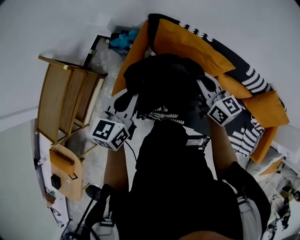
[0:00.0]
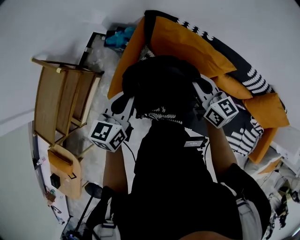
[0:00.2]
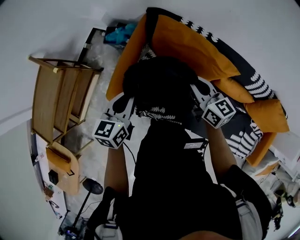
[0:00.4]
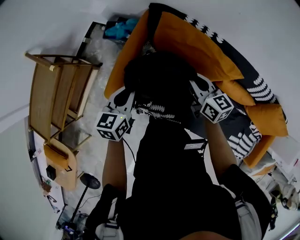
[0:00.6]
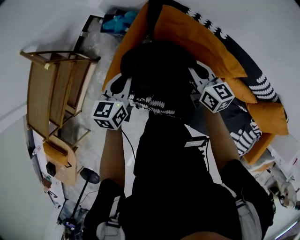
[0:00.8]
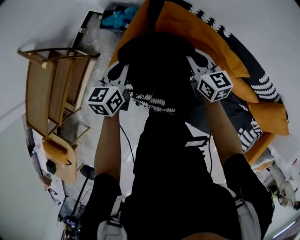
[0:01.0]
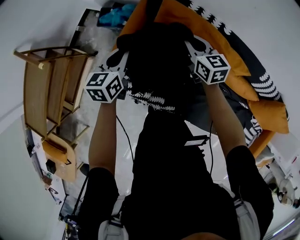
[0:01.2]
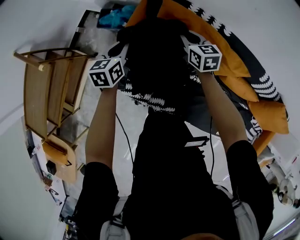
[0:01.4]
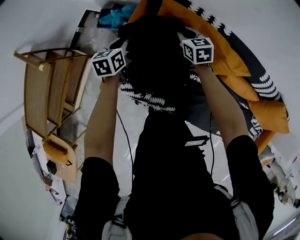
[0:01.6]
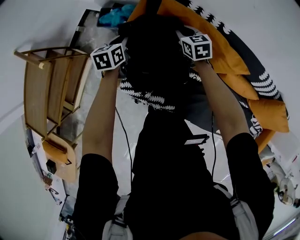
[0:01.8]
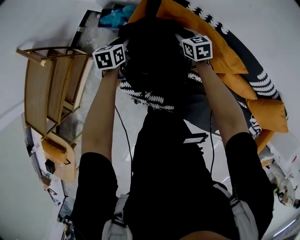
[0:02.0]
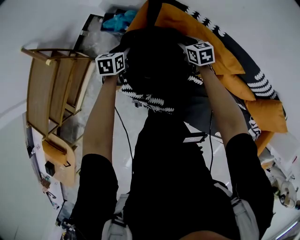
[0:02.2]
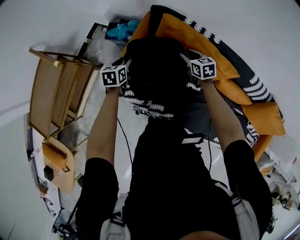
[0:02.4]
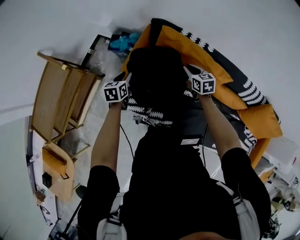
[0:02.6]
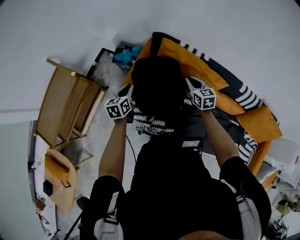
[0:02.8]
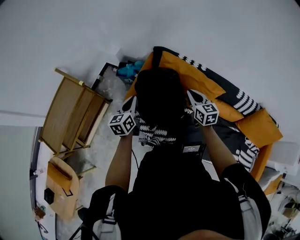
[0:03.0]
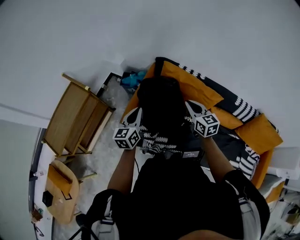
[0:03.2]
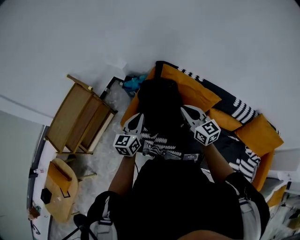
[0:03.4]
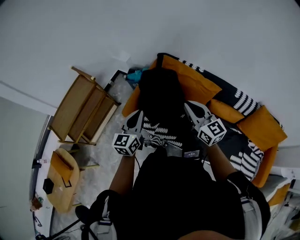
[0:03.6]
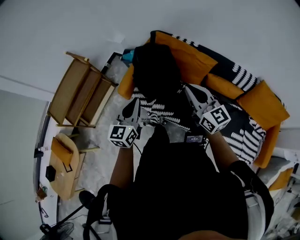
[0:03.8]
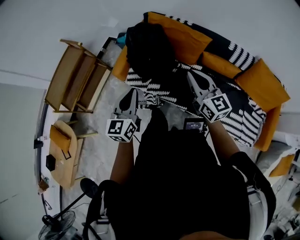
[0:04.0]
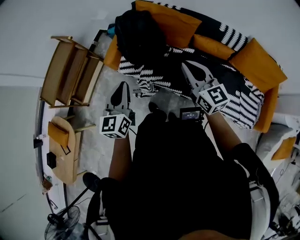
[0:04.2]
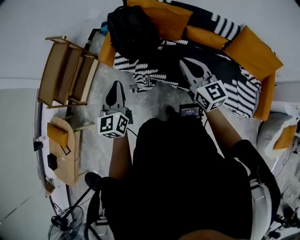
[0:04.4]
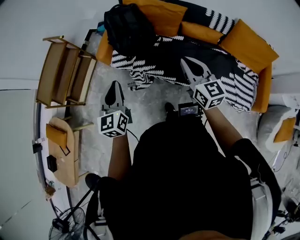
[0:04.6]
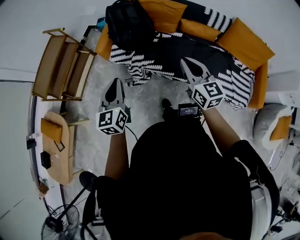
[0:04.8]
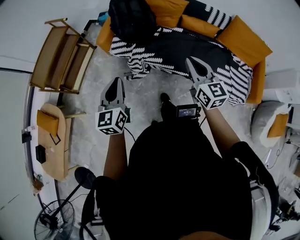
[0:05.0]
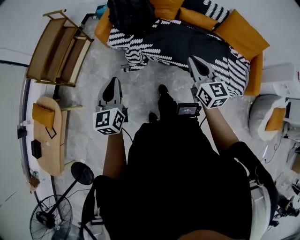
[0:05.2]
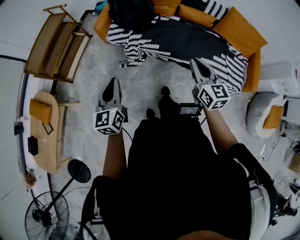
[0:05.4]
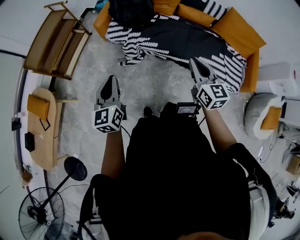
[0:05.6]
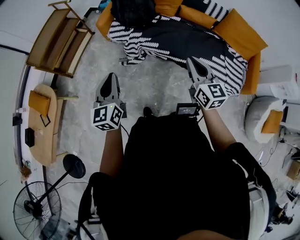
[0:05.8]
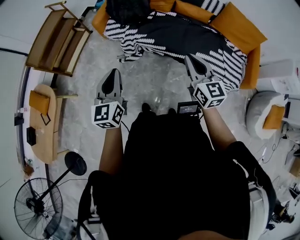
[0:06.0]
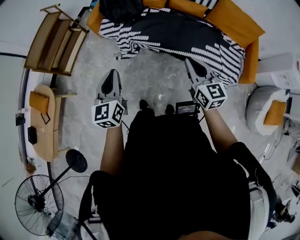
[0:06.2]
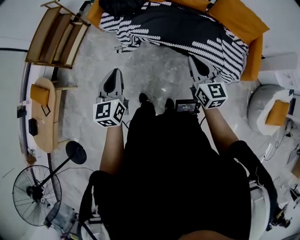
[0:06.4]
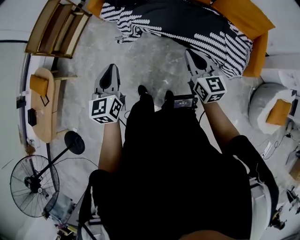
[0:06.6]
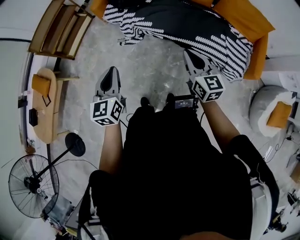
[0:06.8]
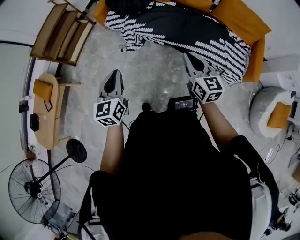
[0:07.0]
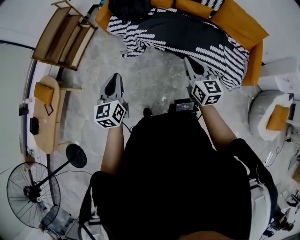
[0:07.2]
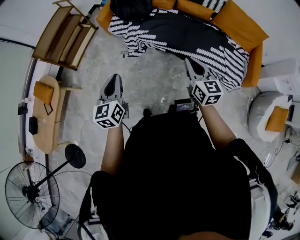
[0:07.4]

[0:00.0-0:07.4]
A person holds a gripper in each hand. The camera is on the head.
0.0 to 1.4 s: The grippers both shift downward and forward by approximately 35 cm. The right gripper changes its angle by roughly 30 degrees.
1.4 to 3.0 s: Both grippers move backward and upward, some 25 cm. The right gripper opens, then closes once more. The left gripper opens and closes again.
3.0 to 4.4 s: The two grippers travel together, backward, about 40 cm. The left gripper rotates some 20 degrees.
4.4 to 6.0 s: Both grippers move backward, roughly 30 cm.
6.0 to 7.4 s: Both grippers move backward, about 5 cm. The right gripper goes to the right and returns, roughly 10 cm each way, while the left gripper moves about 10 cm to the right and comes back.

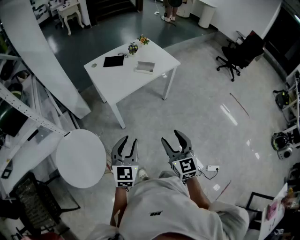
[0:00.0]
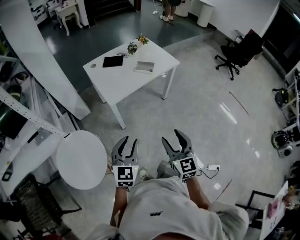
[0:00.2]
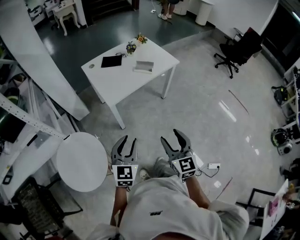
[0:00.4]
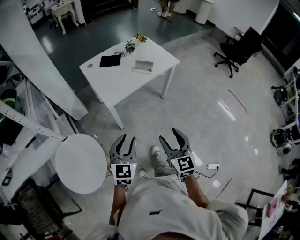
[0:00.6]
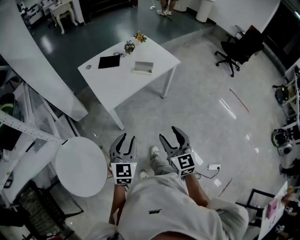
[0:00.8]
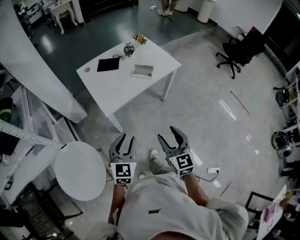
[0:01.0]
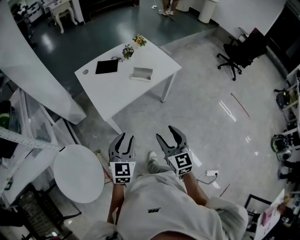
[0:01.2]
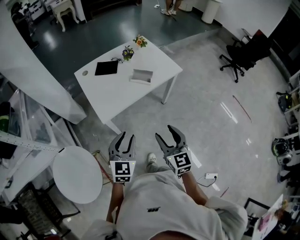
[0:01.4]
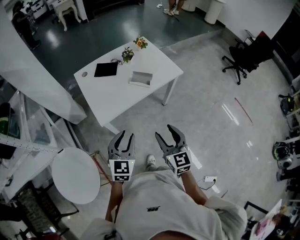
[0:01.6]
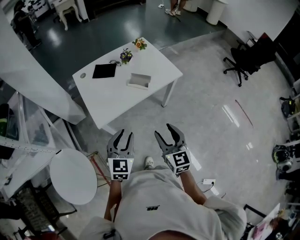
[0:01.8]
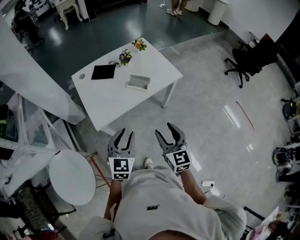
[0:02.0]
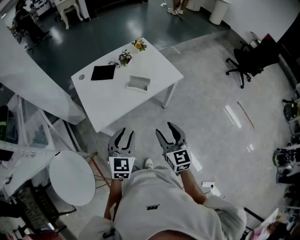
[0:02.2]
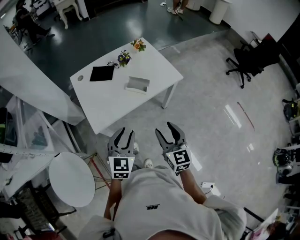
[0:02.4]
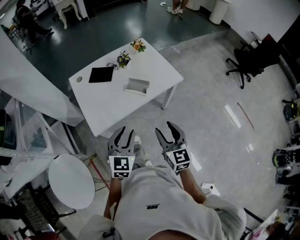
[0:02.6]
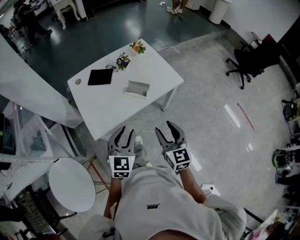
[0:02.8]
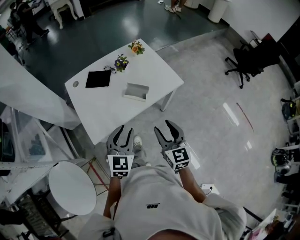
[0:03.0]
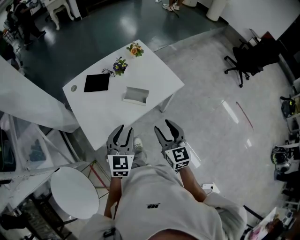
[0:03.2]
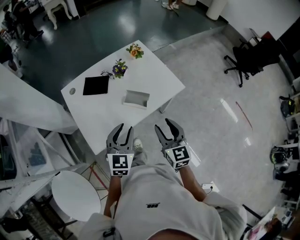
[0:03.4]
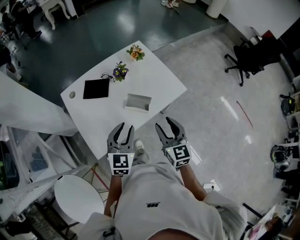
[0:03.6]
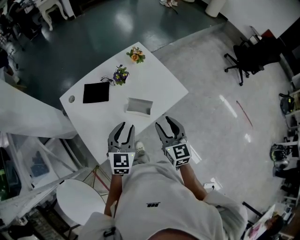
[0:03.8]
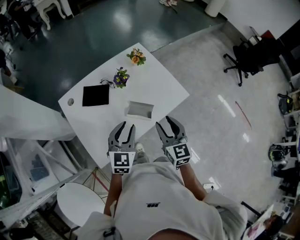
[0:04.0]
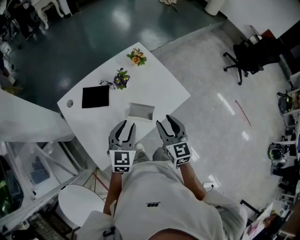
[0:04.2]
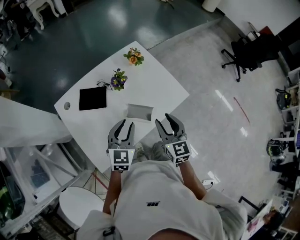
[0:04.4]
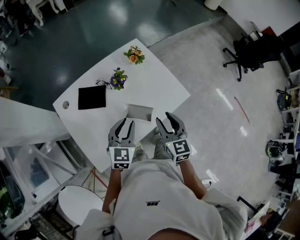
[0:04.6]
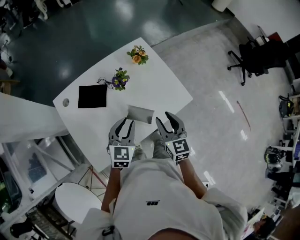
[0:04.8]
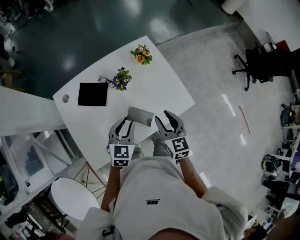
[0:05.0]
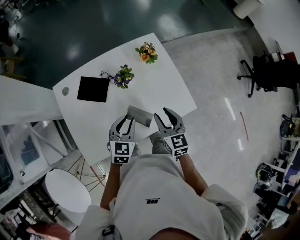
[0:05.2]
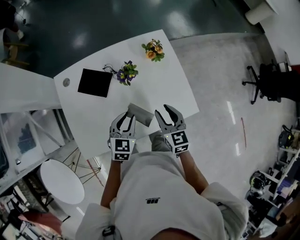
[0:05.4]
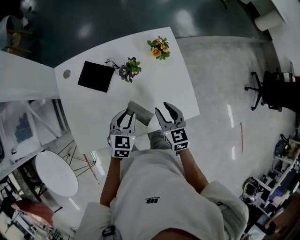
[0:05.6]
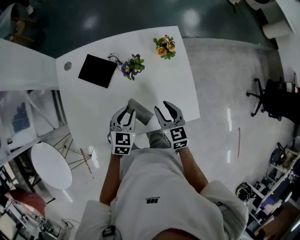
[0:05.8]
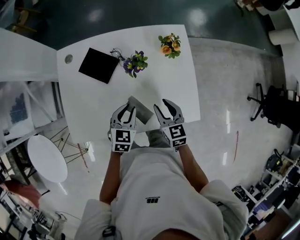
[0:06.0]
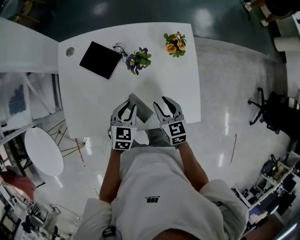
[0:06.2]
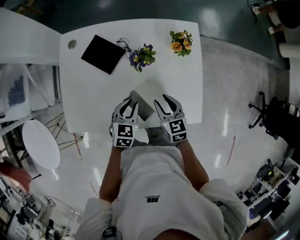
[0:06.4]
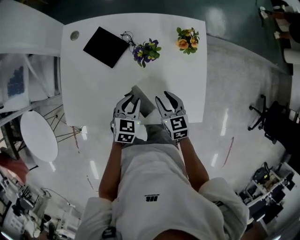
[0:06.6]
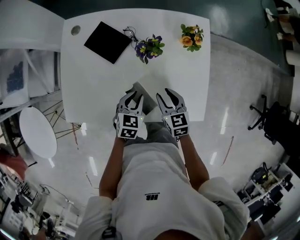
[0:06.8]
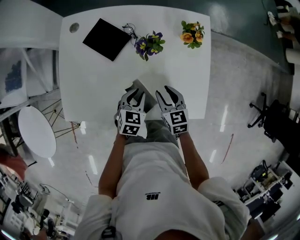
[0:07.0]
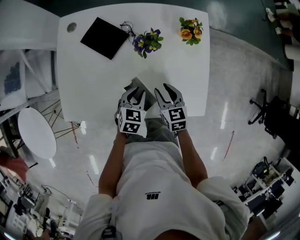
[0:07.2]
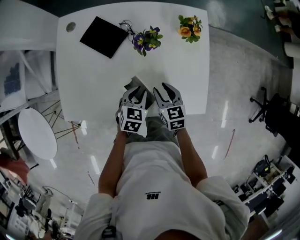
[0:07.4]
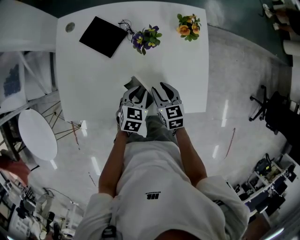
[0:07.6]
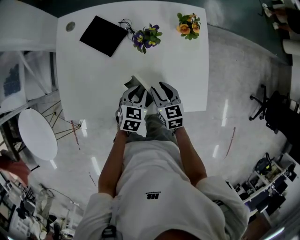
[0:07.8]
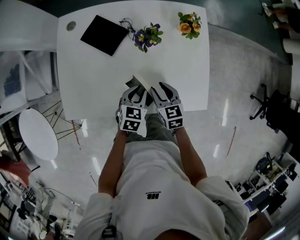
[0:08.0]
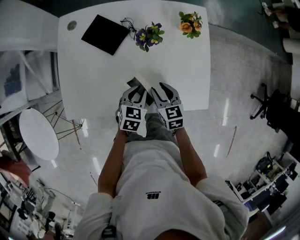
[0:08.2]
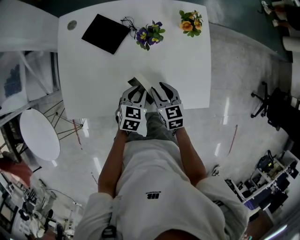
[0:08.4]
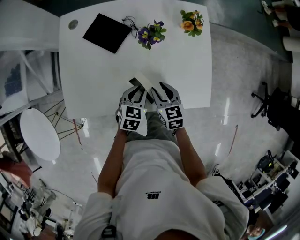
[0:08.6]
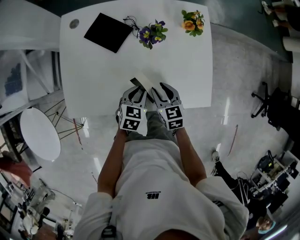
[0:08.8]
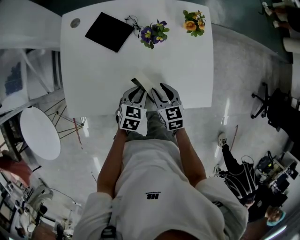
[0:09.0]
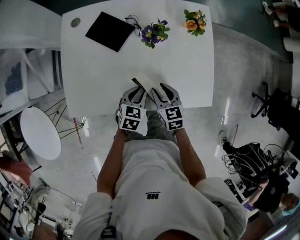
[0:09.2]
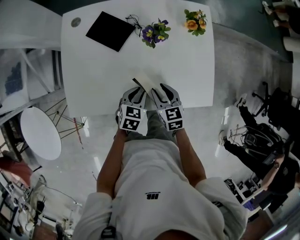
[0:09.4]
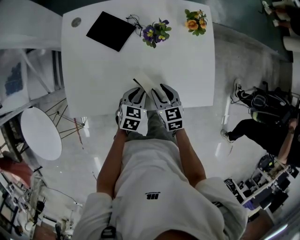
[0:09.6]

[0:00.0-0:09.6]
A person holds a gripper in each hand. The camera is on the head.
0.0 to 1.6 s: Both grippers move forward, approximately 25 cm.
1.6 to 3.2 s: The two grippers go roughly 20 cm forward.
3.2 to 4.8 s: The grippers both shift forward by roughly 25 cm.
4.8 to 6.4 s: Both grippers travel together downward, roughly 15 cm. The left gripper turns by about 30 degrees, while the right gripper changes its angle by approximately 40 degrees.
6.4 to 8.0 s: The right gripper shifts by about 5 cm. The left gripper shifts by about 5 cm.
8.0 to 9.6 s: The left gripper shifts by roughly 5 cm.

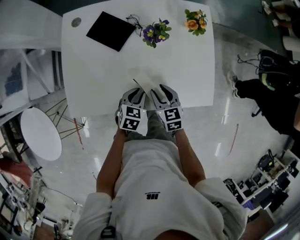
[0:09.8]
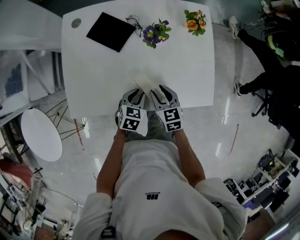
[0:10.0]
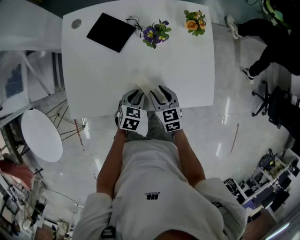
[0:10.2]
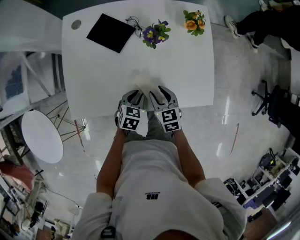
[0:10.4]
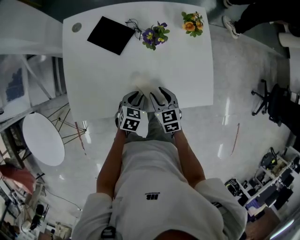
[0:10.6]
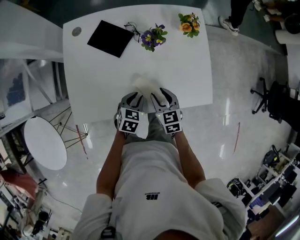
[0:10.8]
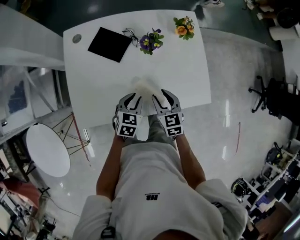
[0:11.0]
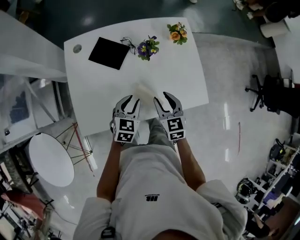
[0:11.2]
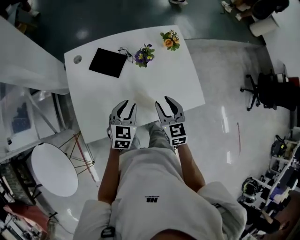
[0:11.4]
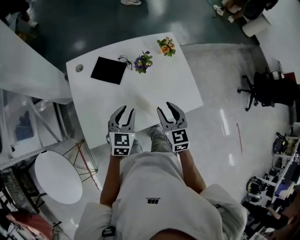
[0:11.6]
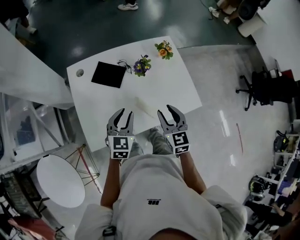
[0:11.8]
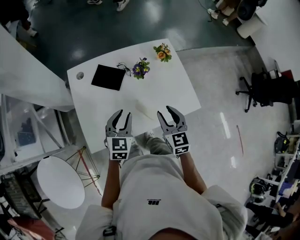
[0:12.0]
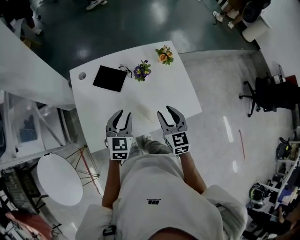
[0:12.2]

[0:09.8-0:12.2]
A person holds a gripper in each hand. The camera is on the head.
9.8 to 11.0 s: The left gripper ends up approximately 5 cm from where it was.
11.0 to 12.2 s: The two grippers go about 15 cm upward. The left gripper rotates some 20 degrees.

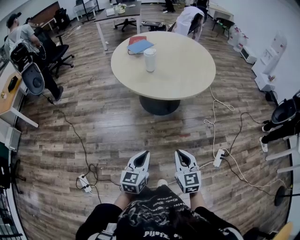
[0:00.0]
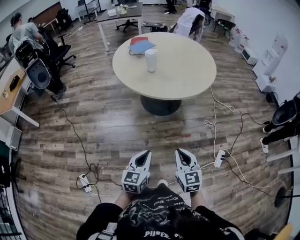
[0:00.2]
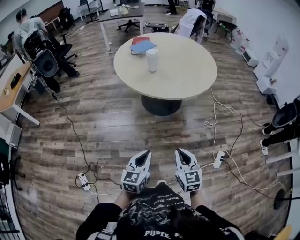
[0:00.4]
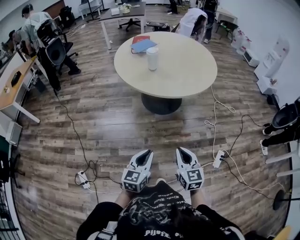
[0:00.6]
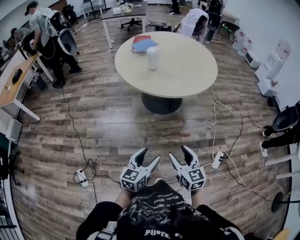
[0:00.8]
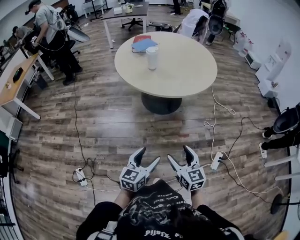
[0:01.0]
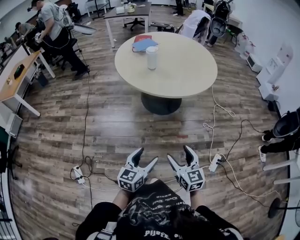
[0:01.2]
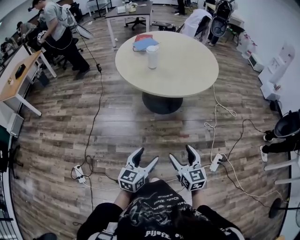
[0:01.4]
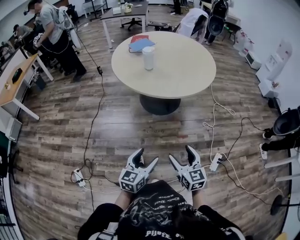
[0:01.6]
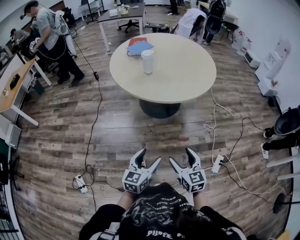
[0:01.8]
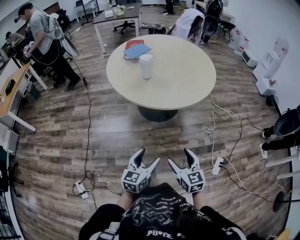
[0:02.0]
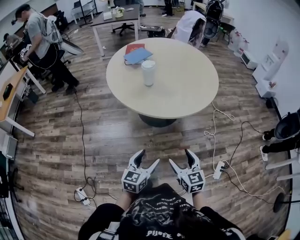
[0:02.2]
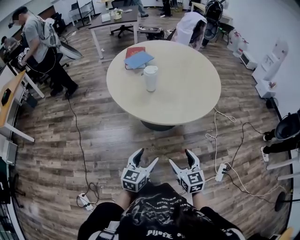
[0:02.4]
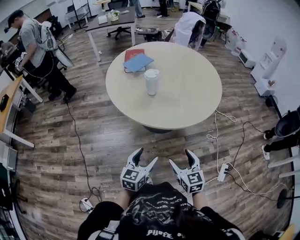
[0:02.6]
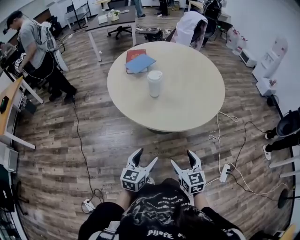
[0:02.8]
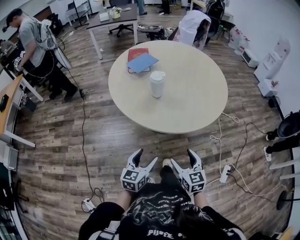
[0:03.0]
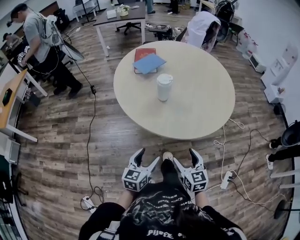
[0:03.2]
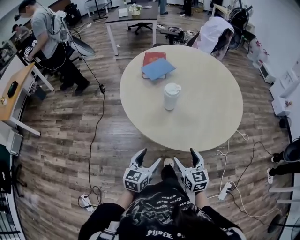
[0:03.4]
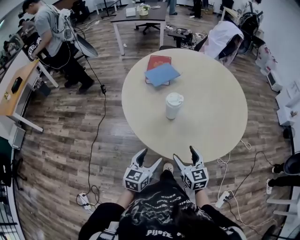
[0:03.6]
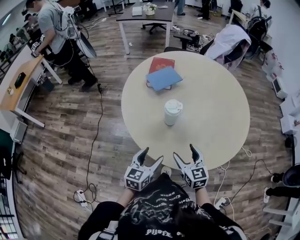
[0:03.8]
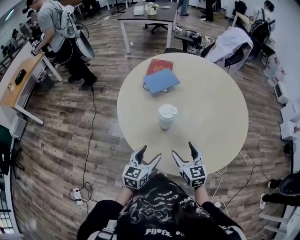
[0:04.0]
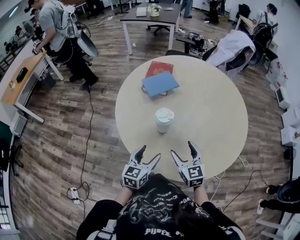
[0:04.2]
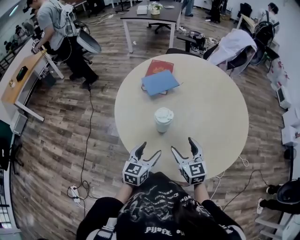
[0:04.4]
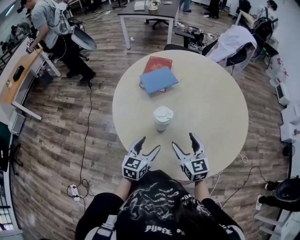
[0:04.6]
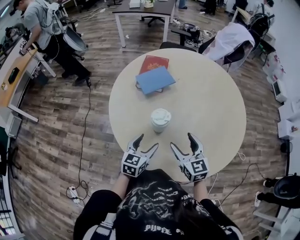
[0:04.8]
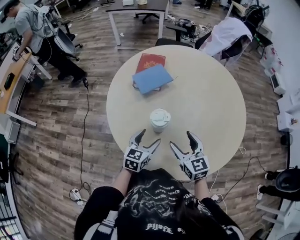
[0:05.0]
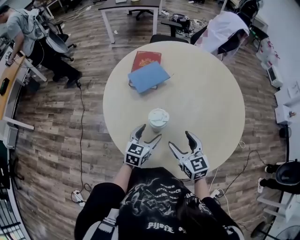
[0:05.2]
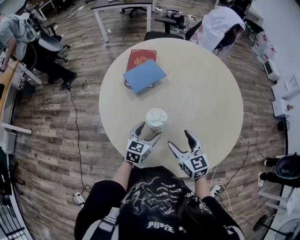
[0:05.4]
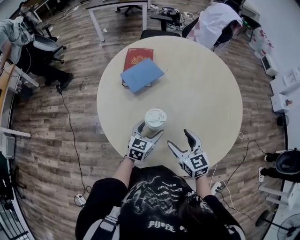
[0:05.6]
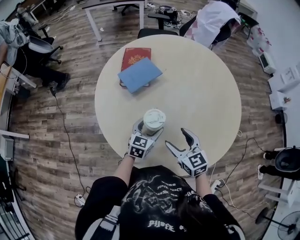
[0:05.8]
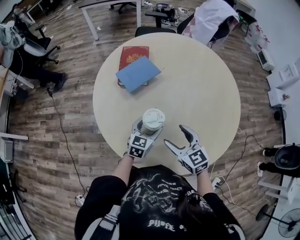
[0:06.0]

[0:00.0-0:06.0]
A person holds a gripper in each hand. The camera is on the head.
0.0 to 1.6 s: Both grippers travel together to the right, about 5 cm. The left gripper opens its fingers. The right gripper opens up.
1.6 to 3.0 s: Both grippers move forward and to the left, about 30 cm.
3.0 to 4.4 s: Both grippers travel together forward, approximately 30 cm. The right gripper rotates roughly 20 degrees.
4.4 to 6.0 s: The right gripper shifts roughly 5 cm forward. The left gripper is displaced forward and downward by approximately 15 cm.
